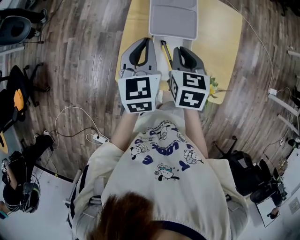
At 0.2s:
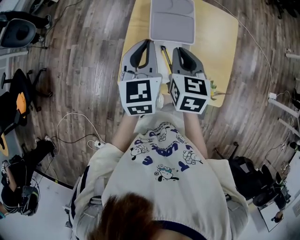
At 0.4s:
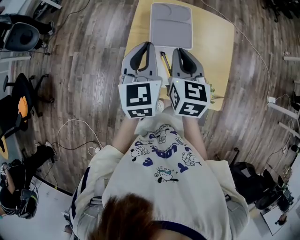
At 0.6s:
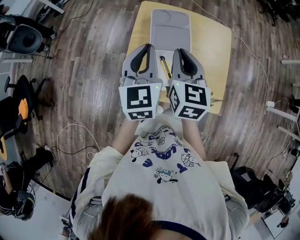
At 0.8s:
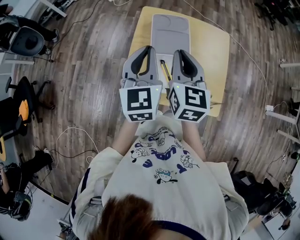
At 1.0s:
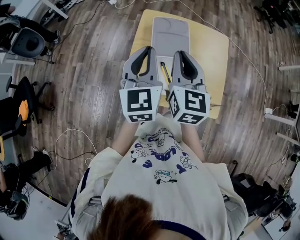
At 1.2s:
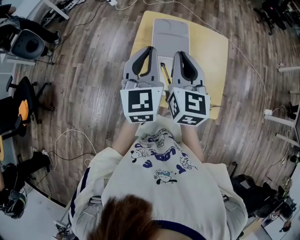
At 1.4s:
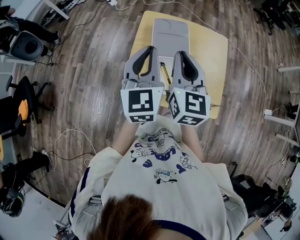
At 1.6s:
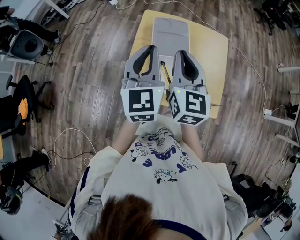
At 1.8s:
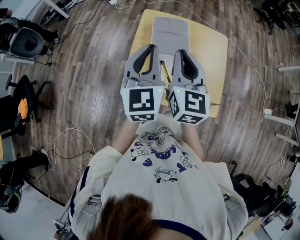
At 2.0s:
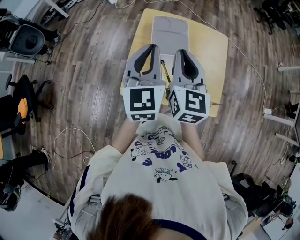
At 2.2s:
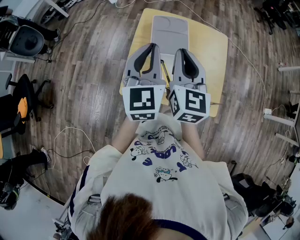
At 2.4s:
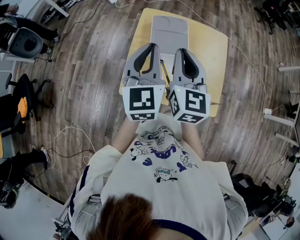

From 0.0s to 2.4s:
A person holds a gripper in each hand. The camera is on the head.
From 0.0s to 1.2s: Both grippers move upward, some 15 cm. The right gripper tilts its fingers some 30 degrees upward.
From 1.2s to 2.4s: The grippers make only small movements.

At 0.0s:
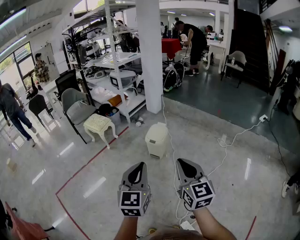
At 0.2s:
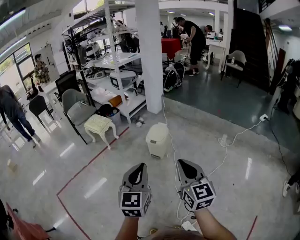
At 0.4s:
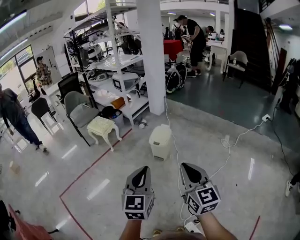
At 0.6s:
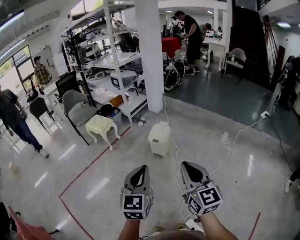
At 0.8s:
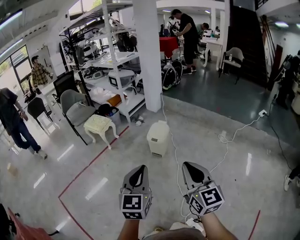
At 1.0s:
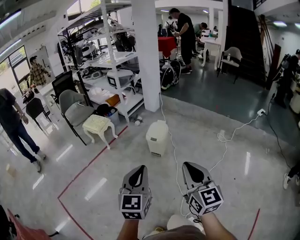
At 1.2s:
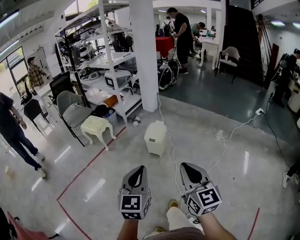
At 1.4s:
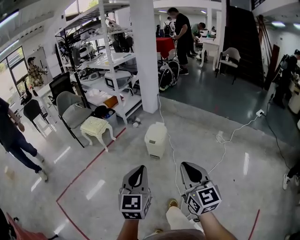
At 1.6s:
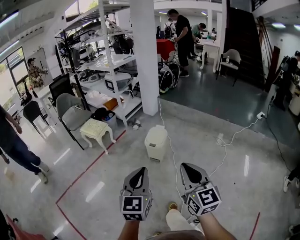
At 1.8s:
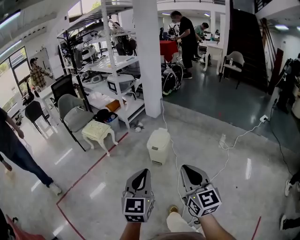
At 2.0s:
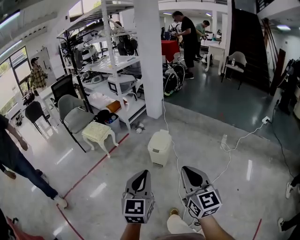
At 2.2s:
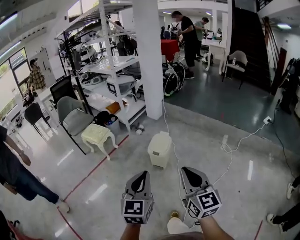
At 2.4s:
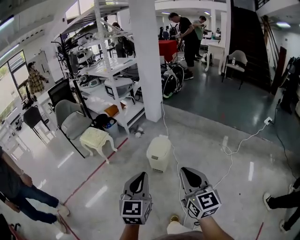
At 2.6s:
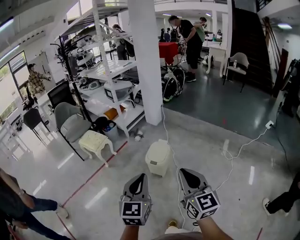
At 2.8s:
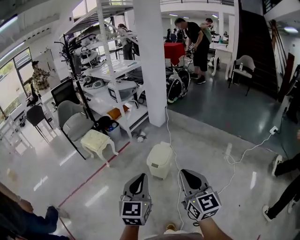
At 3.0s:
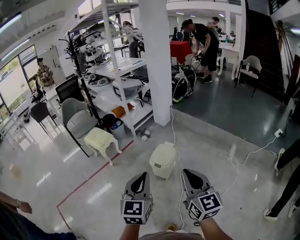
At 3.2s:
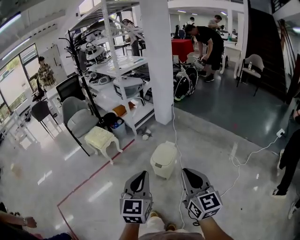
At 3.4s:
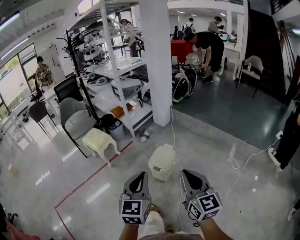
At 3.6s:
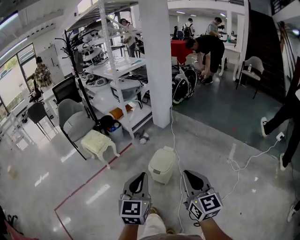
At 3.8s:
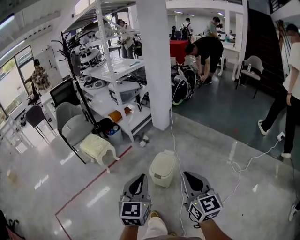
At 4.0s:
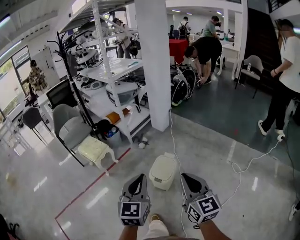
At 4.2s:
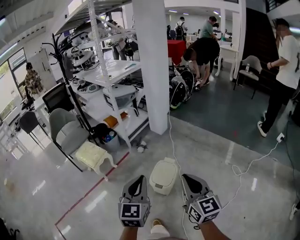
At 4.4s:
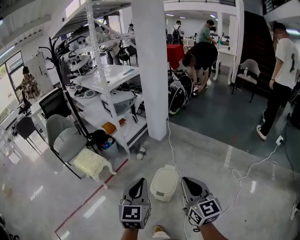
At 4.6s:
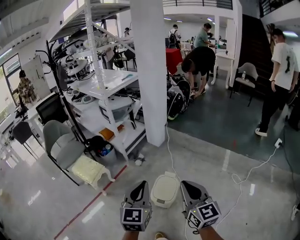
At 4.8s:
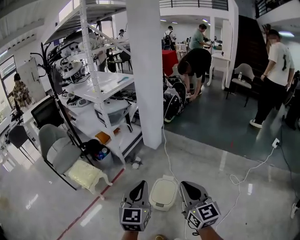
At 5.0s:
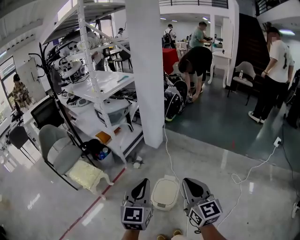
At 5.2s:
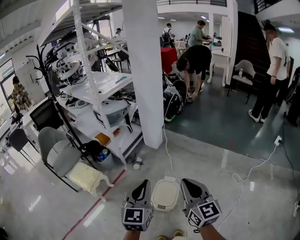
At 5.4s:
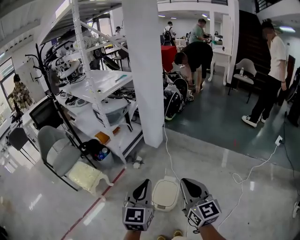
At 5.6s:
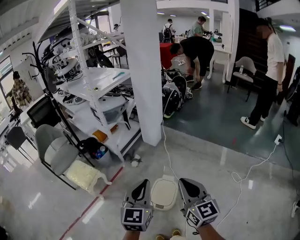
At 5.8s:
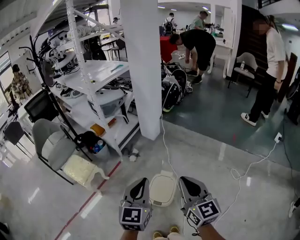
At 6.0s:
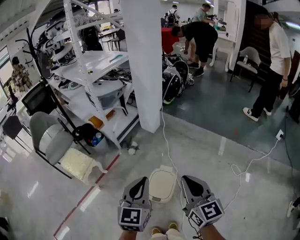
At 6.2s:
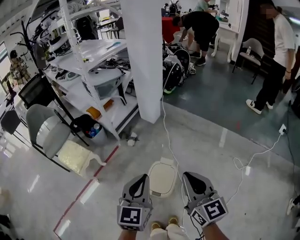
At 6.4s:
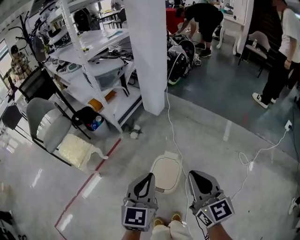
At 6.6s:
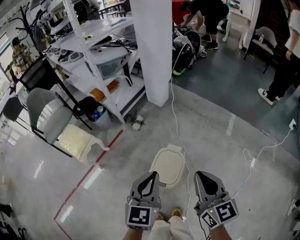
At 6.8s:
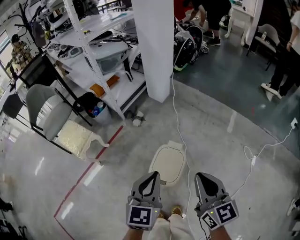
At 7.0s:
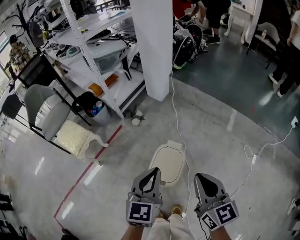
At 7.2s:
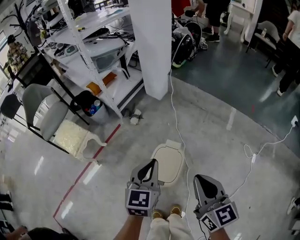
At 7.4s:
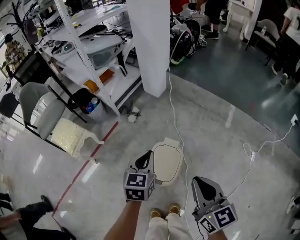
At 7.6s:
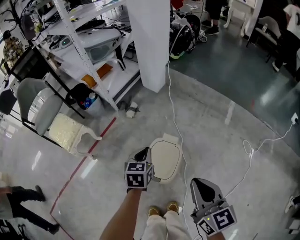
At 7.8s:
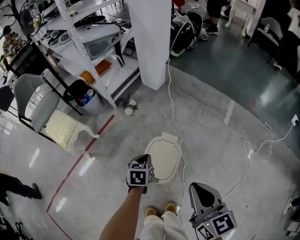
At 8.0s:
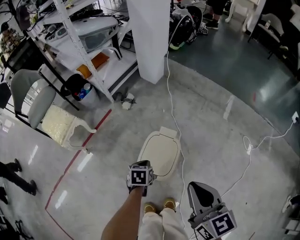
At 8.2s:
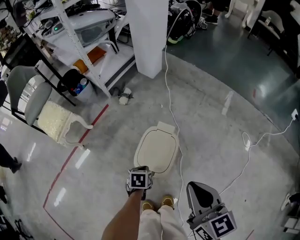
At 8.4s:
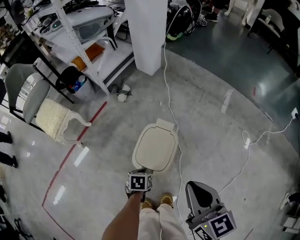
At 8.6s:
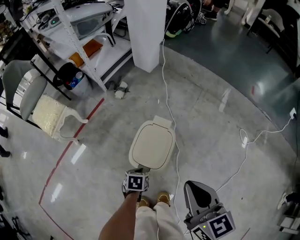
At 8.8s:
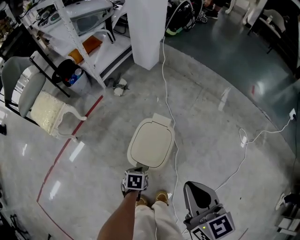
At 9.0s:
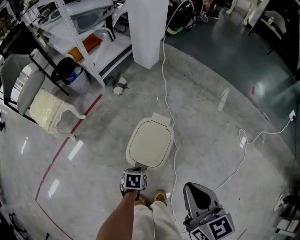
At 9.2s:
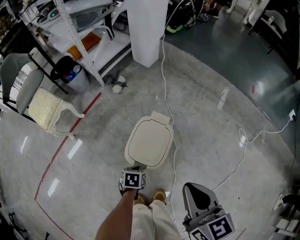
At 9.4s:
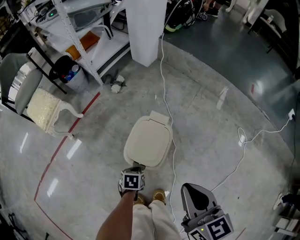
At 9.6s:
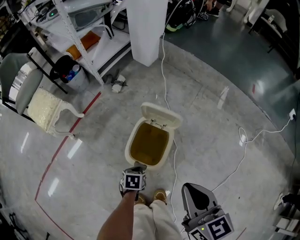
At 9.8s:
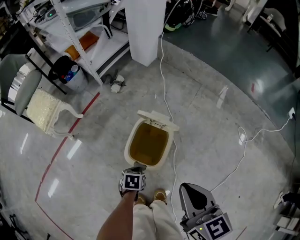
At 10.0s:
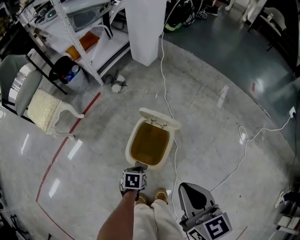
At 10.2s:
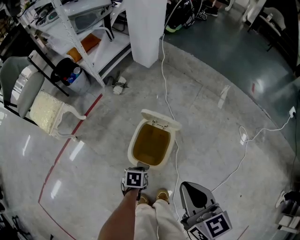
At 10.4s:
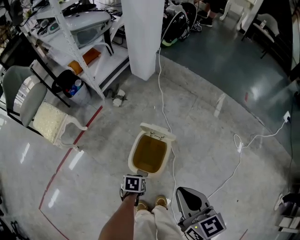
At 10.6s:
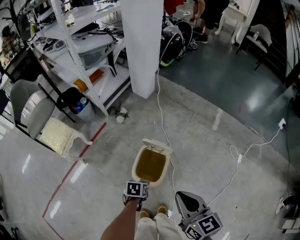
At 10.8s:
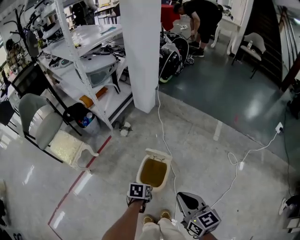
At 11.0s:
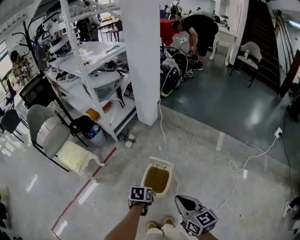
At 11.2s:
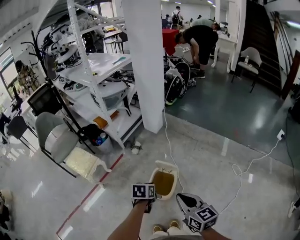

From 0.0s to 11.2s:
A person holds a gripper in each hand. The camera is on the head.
From 0.0s to 1.6s: The grippers stay close to where they were, moving slightly.
From 1.6s to 3.2s: The two grippers go about 25 cm forward.
From 3.2s to 4.8s: Both grippers move forward, roughly 30 cm.
From 4.8s to 6.4s: The grippers both shift downward and forward by approximately 15 cm.
From 6.4s to 8.0s: The right gripper heads downward, covering approximately 15 cm, while the left gripper heads downward, covering approximately 40 cm, and angles its fingers downward, by some 40 degrees.
From 8.0s to 9.6s: The left gripper is displaced downward and backward by some 15 cm.
From 9.6s to 11.2s: The right gripper heads upward, covering some 15 cm; the left gripper shifts approximately 35 cm upward.

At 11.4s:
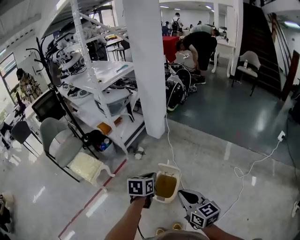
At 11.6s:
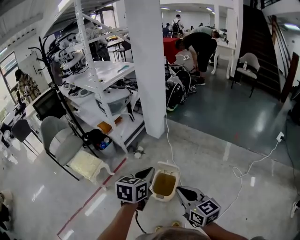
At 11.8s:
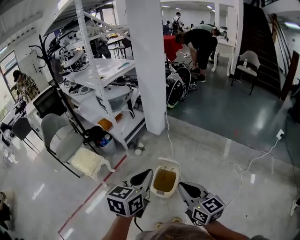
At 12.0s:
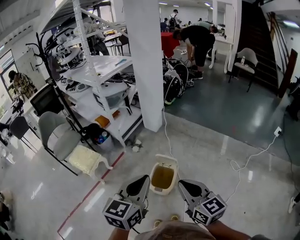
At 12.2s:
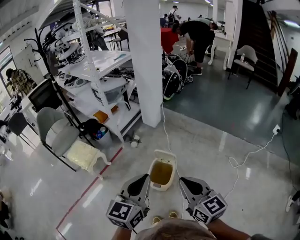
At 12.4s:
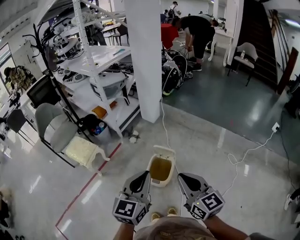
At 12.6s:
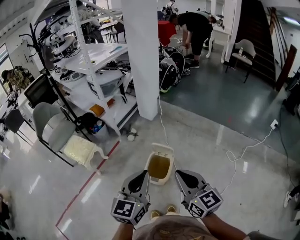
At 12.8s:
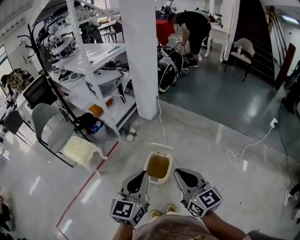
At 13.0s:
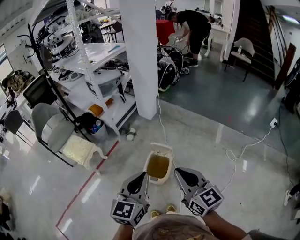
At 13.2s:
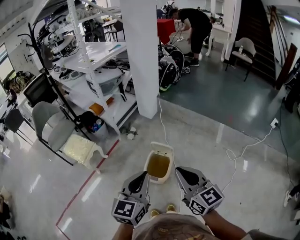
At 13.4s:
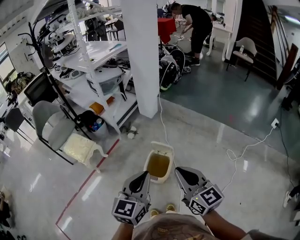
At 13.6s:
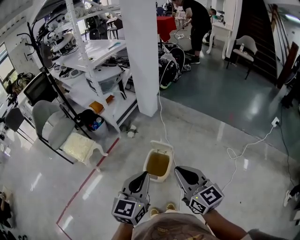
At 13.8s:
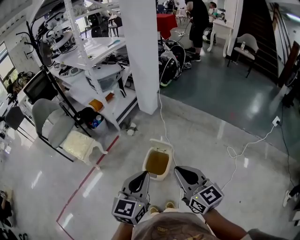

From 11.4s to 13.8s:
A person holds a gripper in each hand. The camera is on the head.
From 11.4s to 12.6s: The left gripper travels backward and upward by about 20 cm, and angles its fingers upward, by some 30 degrees. The right gripper goes approximately 10 cm upward.
From 12.6s to 13.8s: There are only small adjustments of the grippers.

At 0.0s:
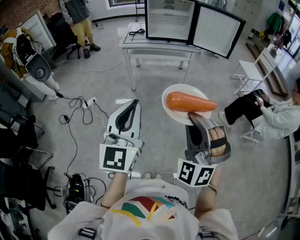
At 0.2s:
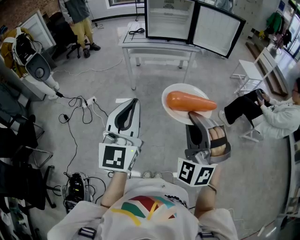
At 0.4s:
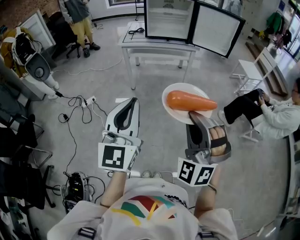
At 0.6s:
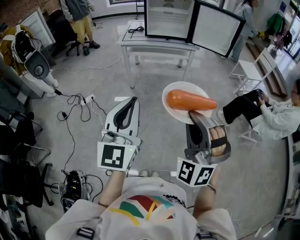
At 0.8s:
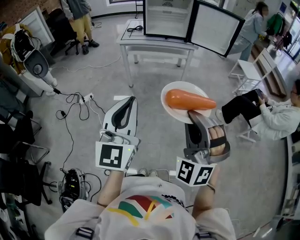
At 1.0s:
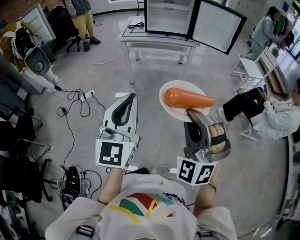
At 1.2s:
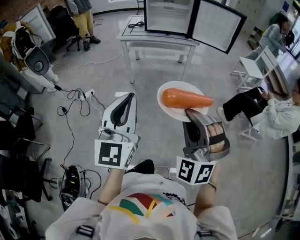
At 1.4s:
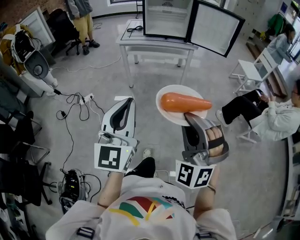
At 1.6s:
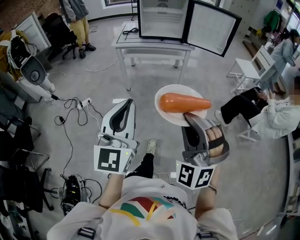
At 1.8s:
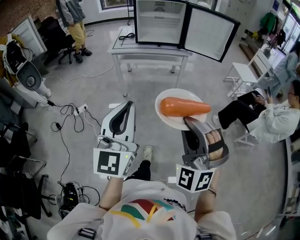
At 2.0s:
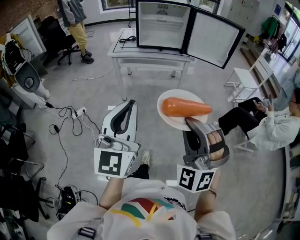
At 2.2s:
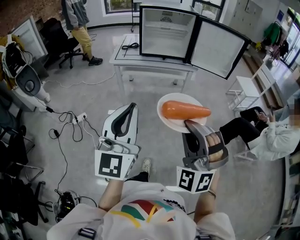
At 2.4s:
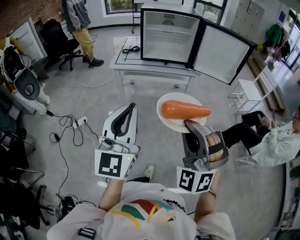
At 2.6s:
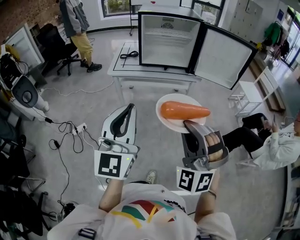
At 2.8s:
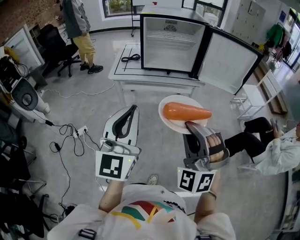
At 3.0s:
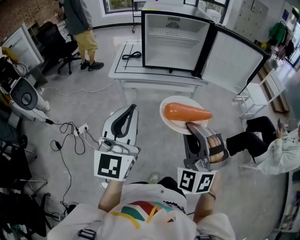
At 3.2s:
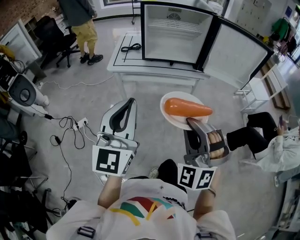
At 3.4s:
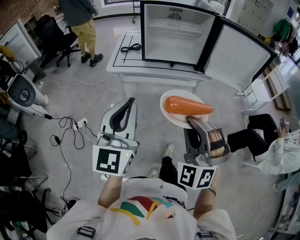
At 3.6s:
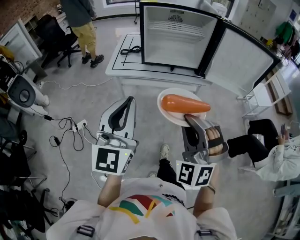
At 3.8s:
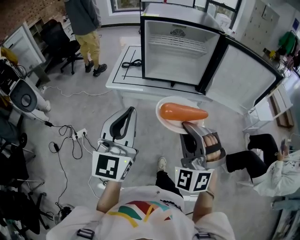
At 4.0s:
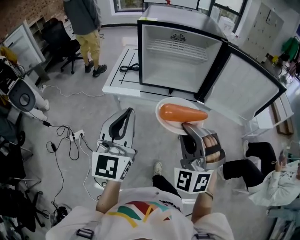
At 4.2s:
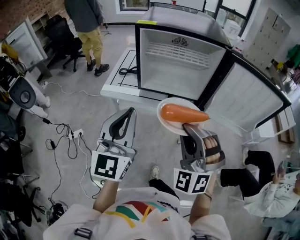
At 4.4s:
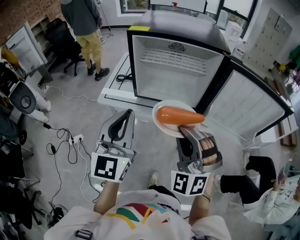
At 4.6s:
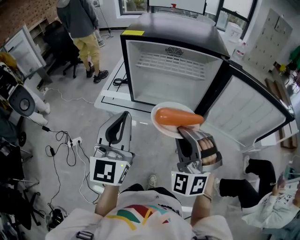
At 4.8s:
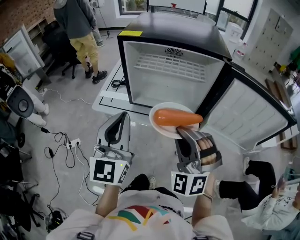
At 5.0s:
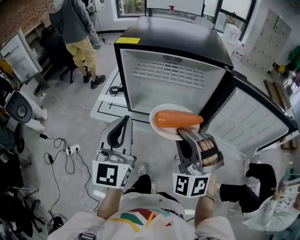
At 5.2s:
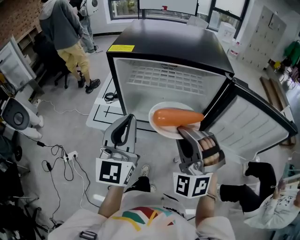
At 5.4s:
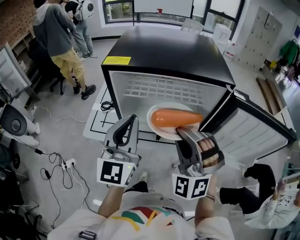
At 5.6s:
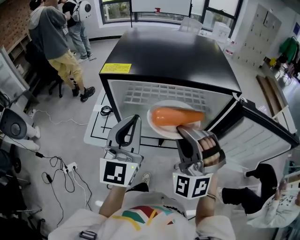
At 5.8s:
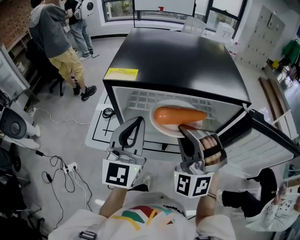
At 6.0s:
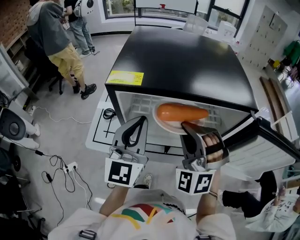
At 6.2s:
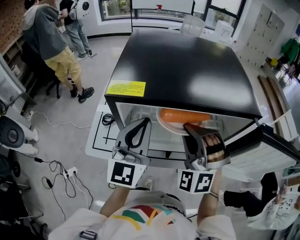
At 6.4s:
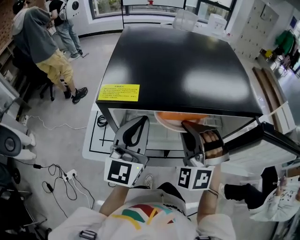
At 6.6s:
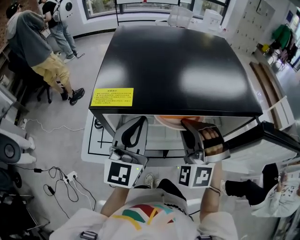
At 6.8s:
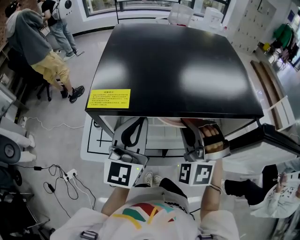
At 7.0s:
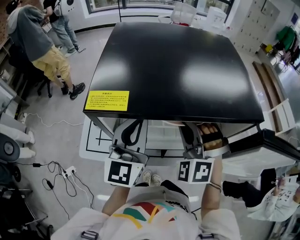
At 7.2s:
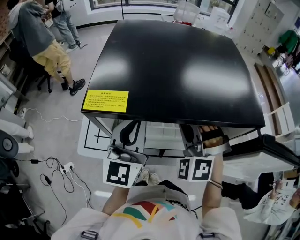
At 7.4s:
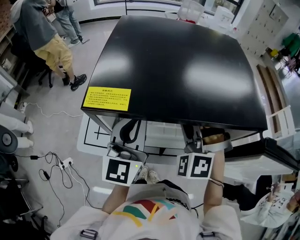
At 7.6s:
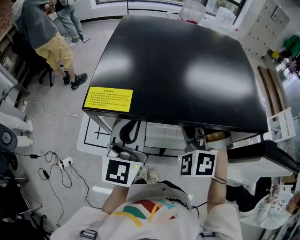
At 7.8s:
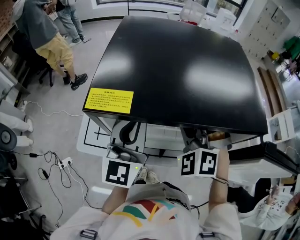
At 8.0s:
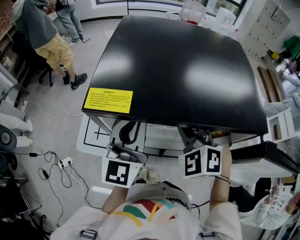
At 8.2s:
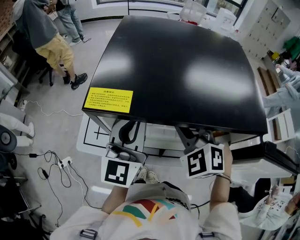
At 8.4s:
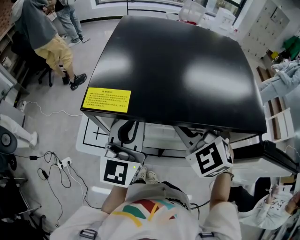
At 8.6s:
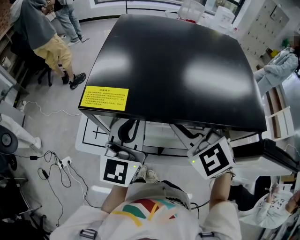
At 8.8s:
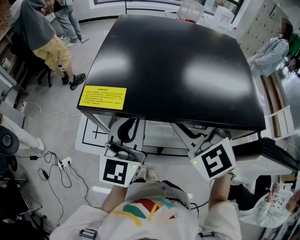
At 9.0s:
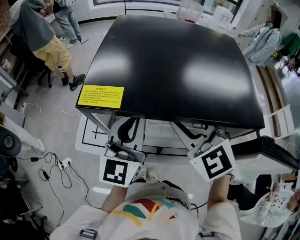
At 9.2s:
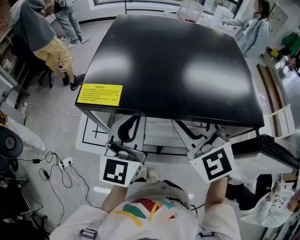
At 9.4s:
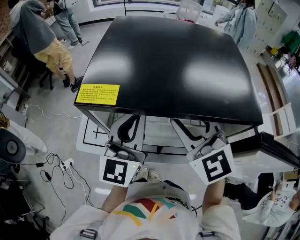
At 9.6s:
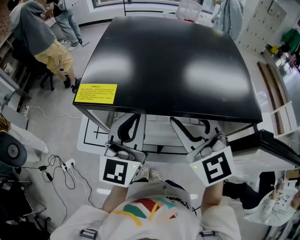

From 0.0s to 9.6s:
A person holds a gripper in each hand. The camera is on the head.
From 0.0s to 1.6s: The grippers stay close to where they were, moving slightly.
From 1.6s to 3.2s: Both grippers move forward, some 35 cm.
From 3.2s to 4.8s: Both grippers move forward, roughly 30 cm.
From 4.8s to 6.4s: The two grippers go about 30 cm forward.
From 6.4s to 8.0s: The right gripper travels forward by approximately 5 cm, and changes its angle by about 20 degrees.
From 8.0s to 9.6s: The right gripper goes about 5 cm upward, and turns by approximately 40 degrees.
